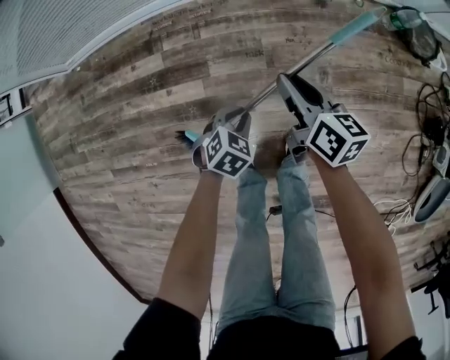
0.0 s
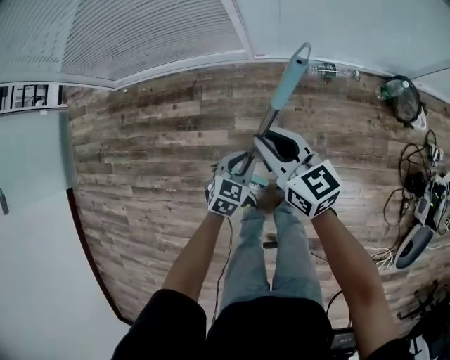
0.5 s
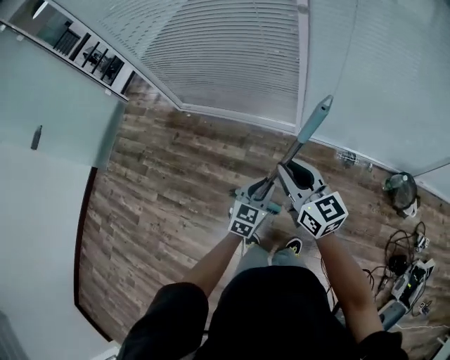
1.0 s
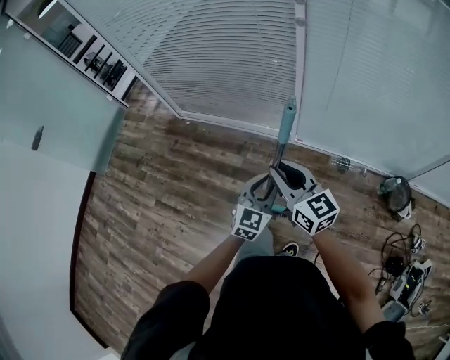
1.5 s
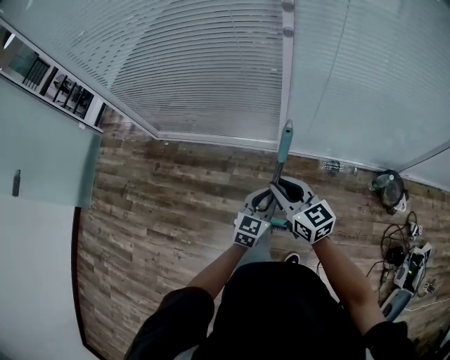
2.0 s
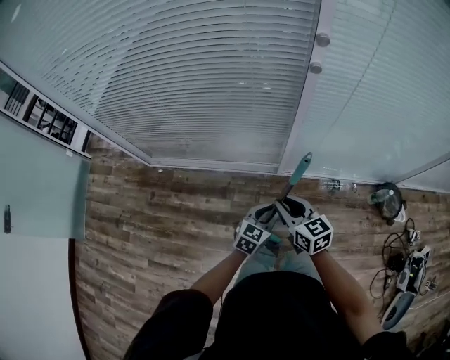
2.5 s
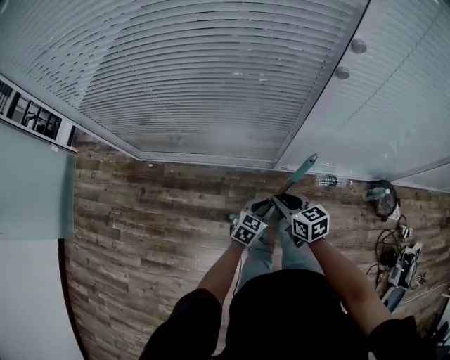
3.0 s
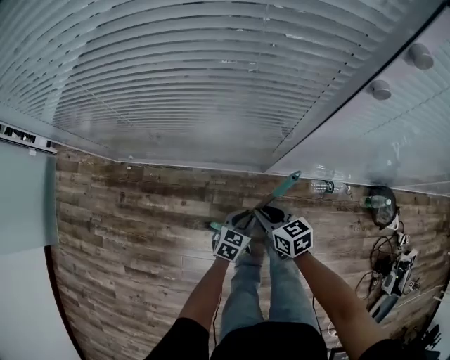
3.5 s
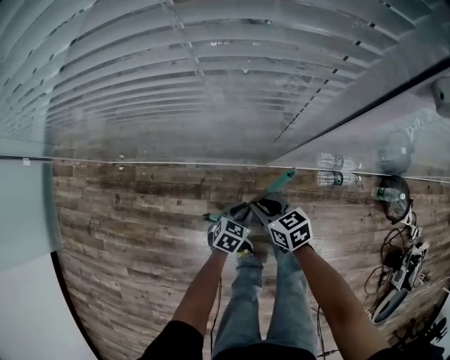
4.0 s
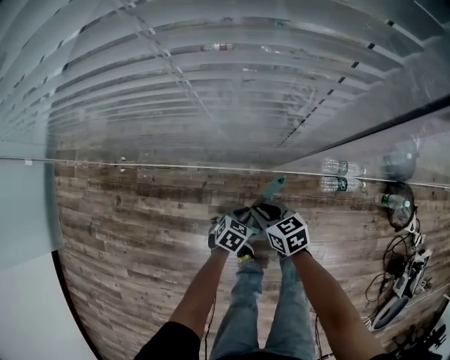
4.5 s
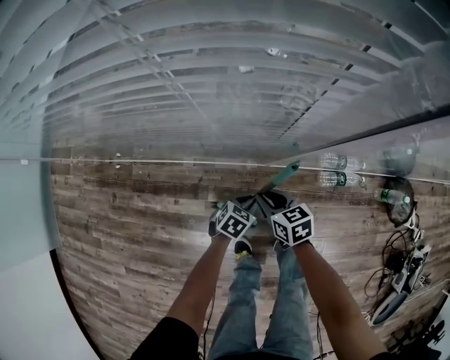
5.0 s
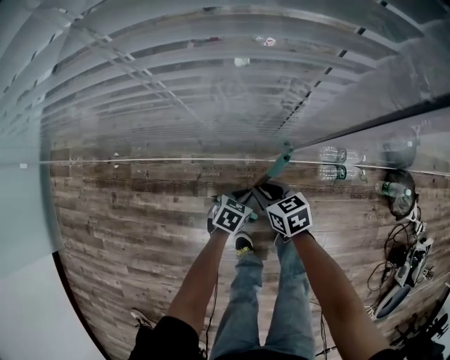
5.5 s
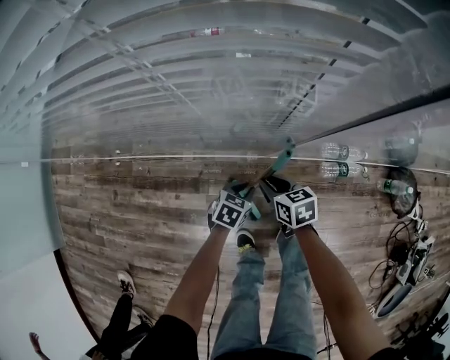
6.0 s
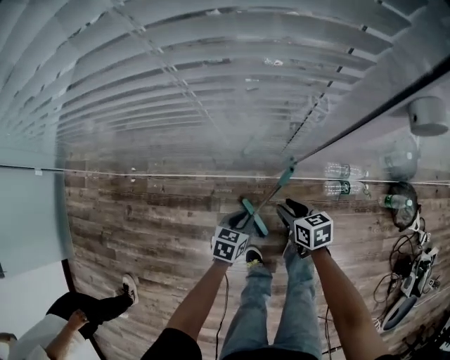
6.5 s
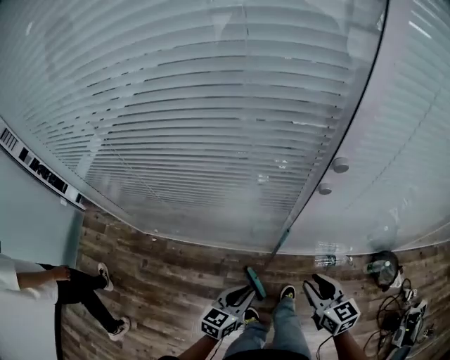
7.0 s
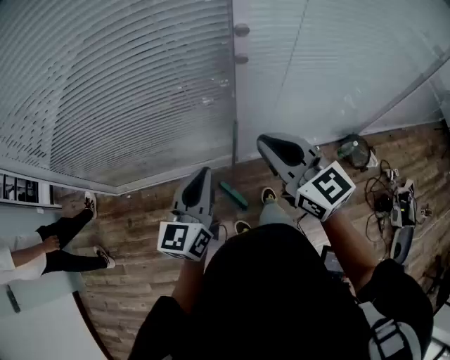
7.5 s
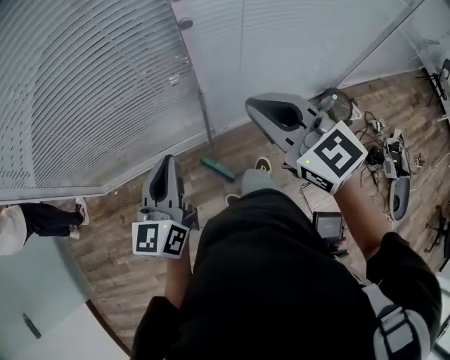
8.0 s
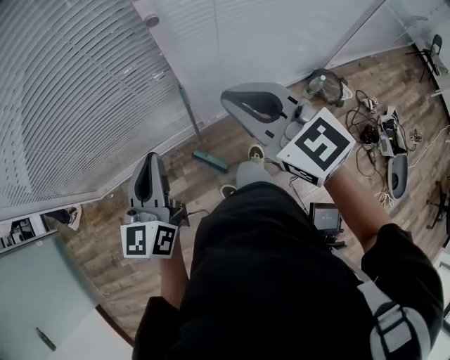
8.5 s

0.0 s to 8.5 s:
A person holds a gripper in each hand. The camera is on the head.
0.0 to 2.0 s: The two grippers go about 50 cm upward. The right gripper changes its angle by roughly 50 degrees. Meanwhile the left gripper tips its fingers upward by roughly 40 degrees.
2.0 to 4.0 s: The two grippers go some 50 cm downward and forward. The right gripper rotates roughly 30 degrees, while the left gripper swivels some 30 degrees.
4.0 to 6.5 s: The left gripper changes place by about 5 cm. The right gripper moves to the right, some 5 cm.
6.5 to 8.5 s: Both grippers travel together upward, about 50 cm. The left gripper angles its fingers upward, by approximately 50 degrees. The right gripper angles its fingers upward, by approximately 30 degrees, and closes its fingers.

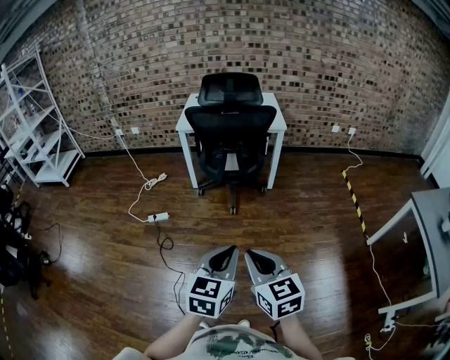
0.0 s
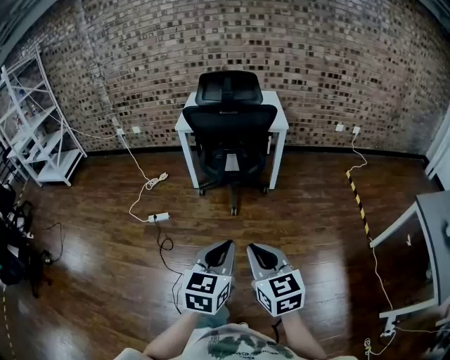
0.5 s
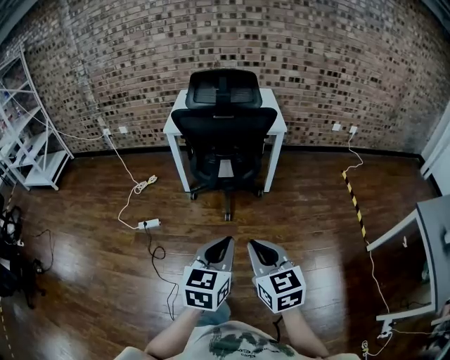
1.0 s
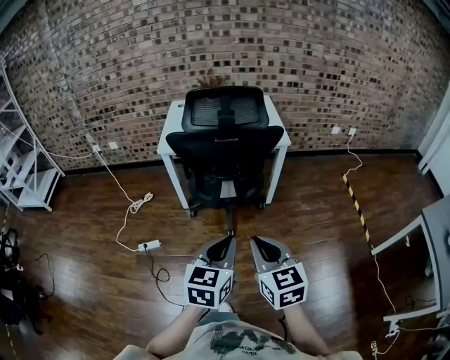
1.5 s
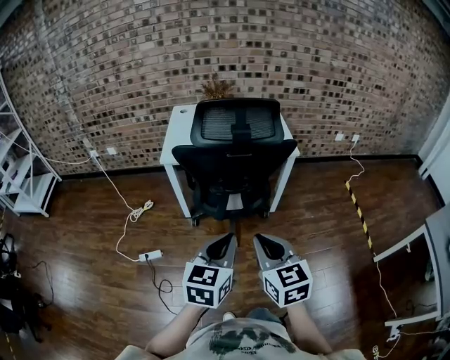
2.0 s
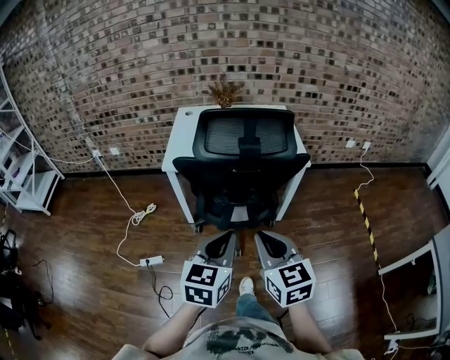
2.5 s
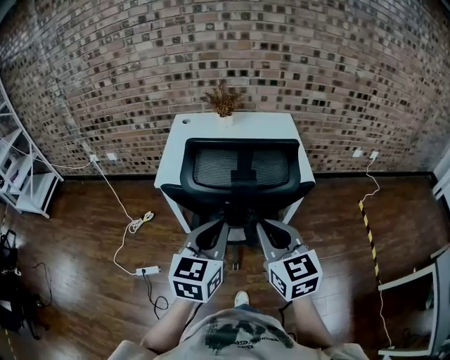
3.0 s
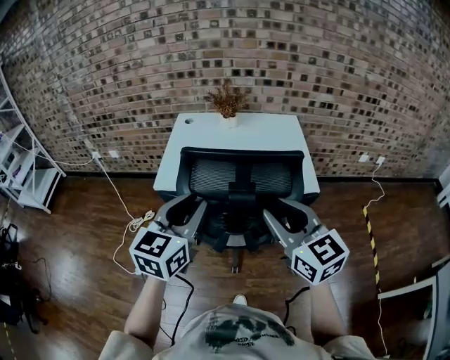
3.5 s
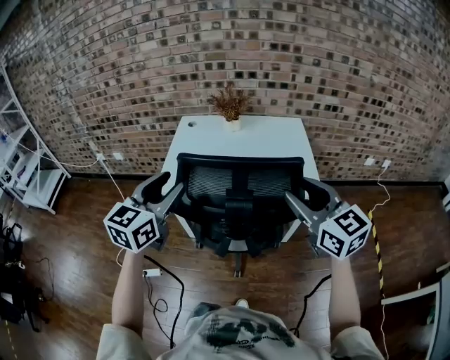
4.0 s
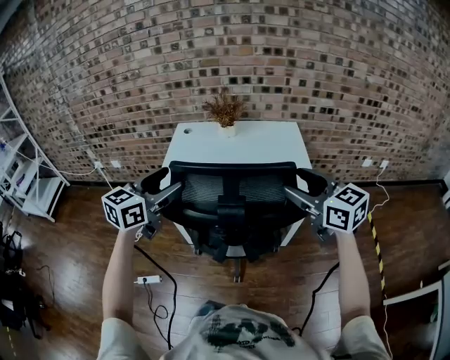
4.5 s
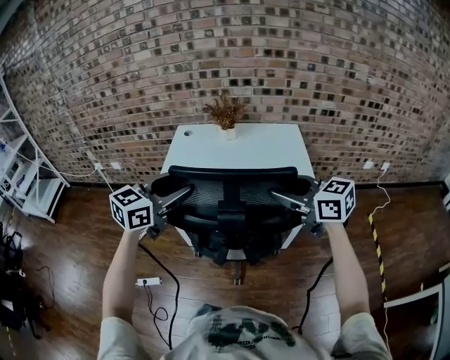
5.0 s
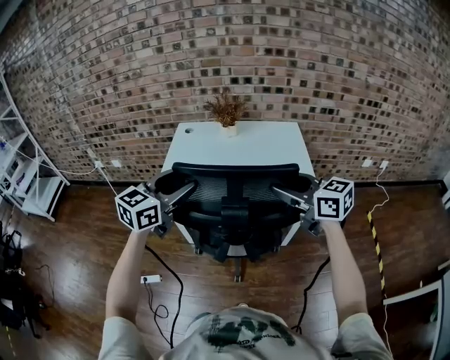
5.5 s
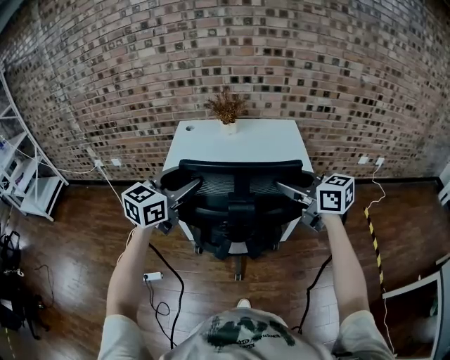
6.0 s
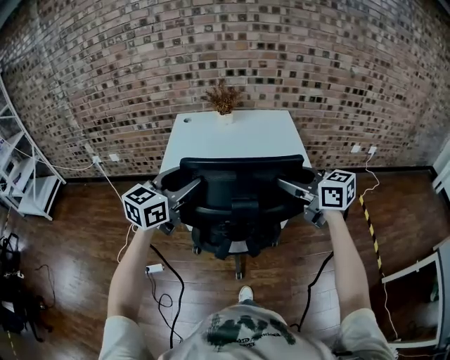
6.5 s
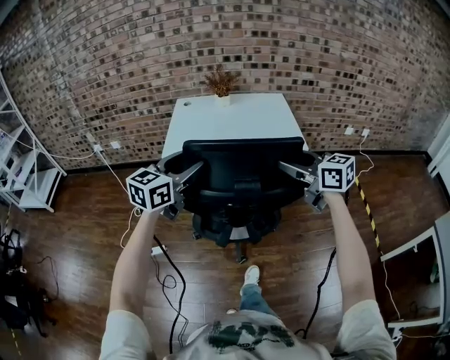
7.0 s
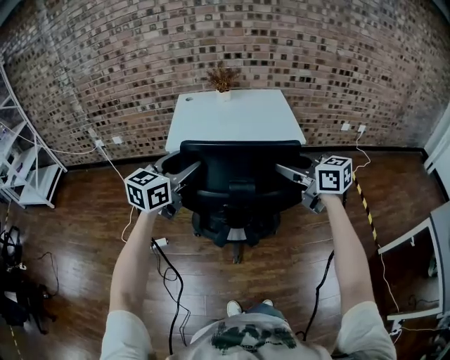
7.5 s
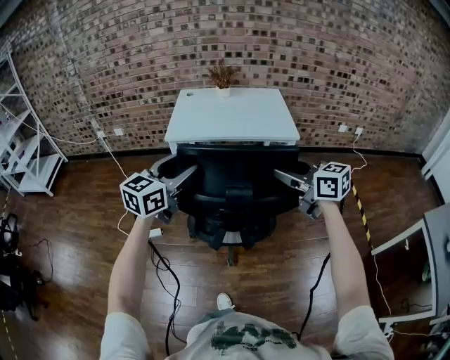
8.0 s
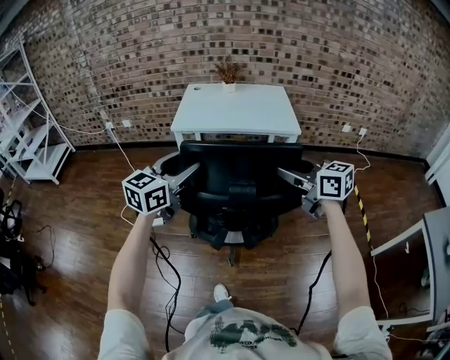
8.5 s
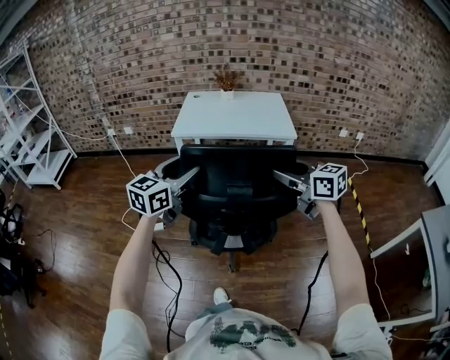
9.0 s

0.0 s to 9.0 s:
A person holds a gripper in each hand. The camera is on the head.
0.0 to 2.0 s: The grippers both shift forward by some 40 cm.
2.0 to 4.5 s: Both grippers are carried forward, some 40 cm. The right gripper rotates approximately 20 degrees, and opens. The left gripper opens its fingers.
4.5 to 7.0 s: The two grippers go some 15 cm backward.
7.0 to 9.0 s: The two grippers go about 20 cm backward.

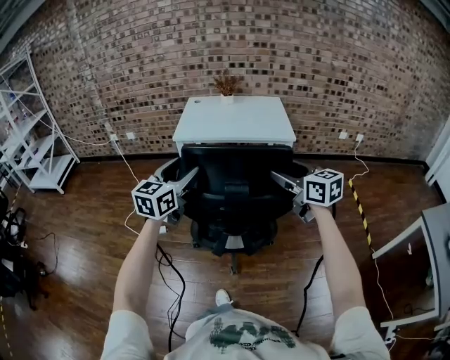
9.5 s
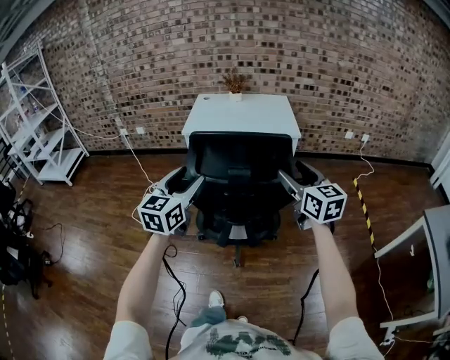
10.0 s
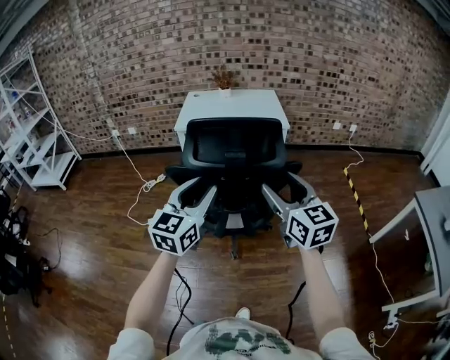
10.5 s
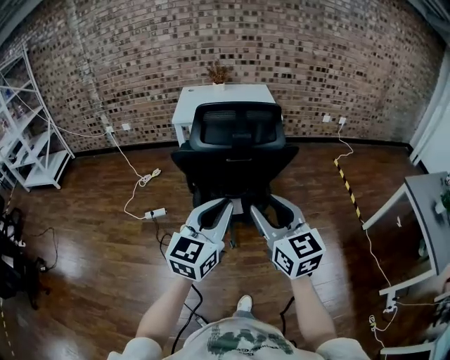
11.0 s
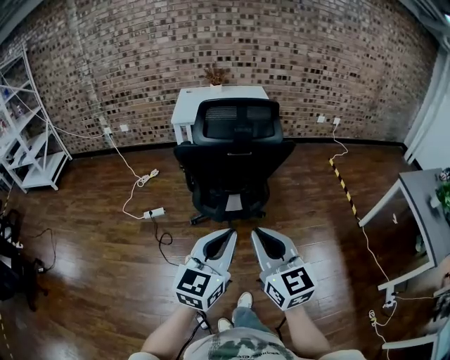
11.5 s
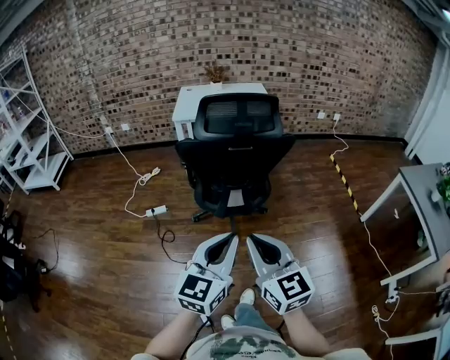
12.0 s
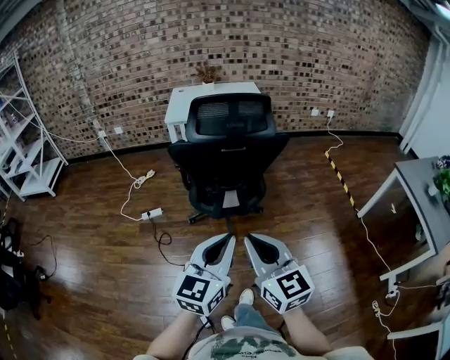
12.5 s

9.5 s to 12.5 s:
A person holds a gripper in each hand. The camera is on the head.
9.5 to 11.0 s: Both grippers travel together backward, approximately 35 cm. The left gripper closes up; the right gripper changes its angle by roughly 20 degrees.
11.0 to 12.5 s: The two grippers go about 10 cm backward. The right gripper closes.

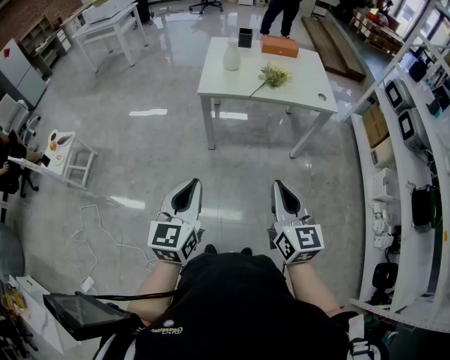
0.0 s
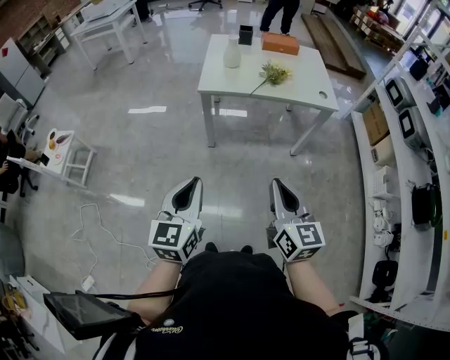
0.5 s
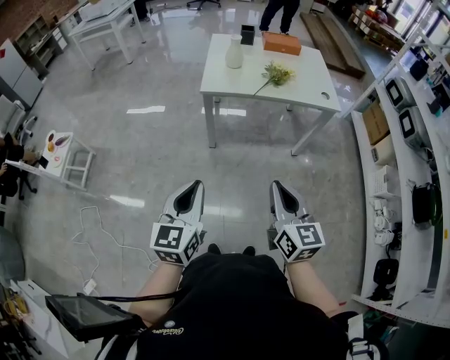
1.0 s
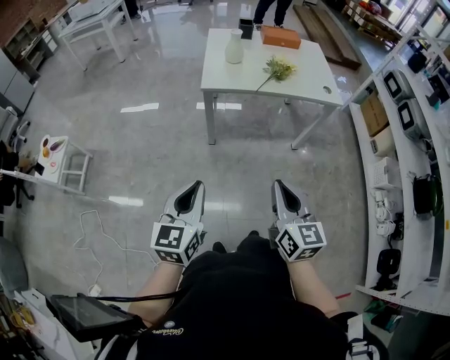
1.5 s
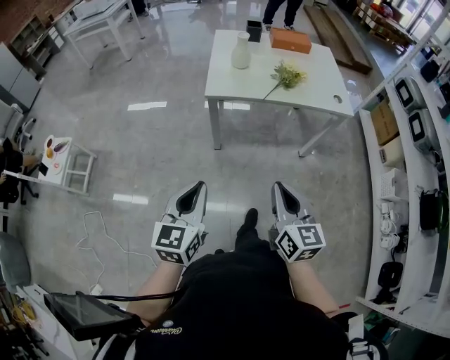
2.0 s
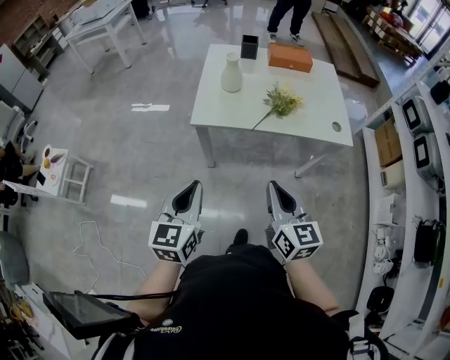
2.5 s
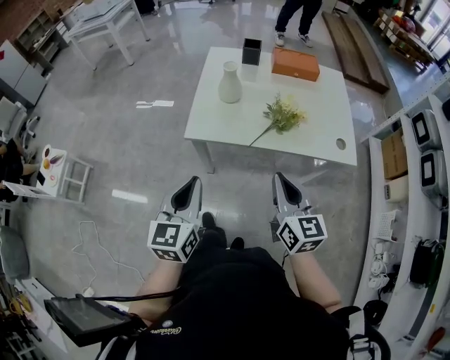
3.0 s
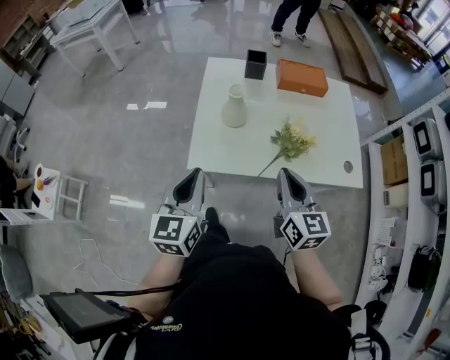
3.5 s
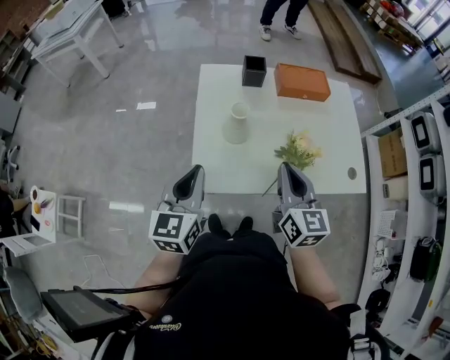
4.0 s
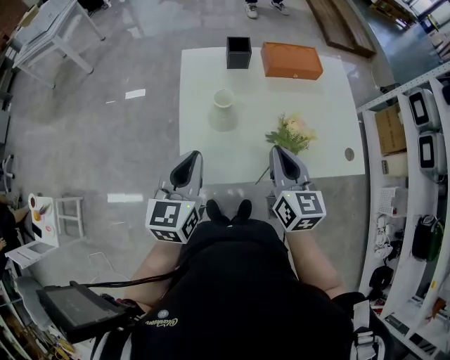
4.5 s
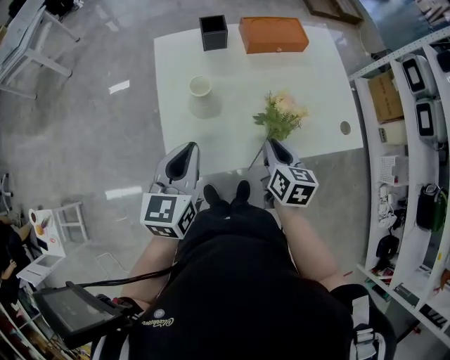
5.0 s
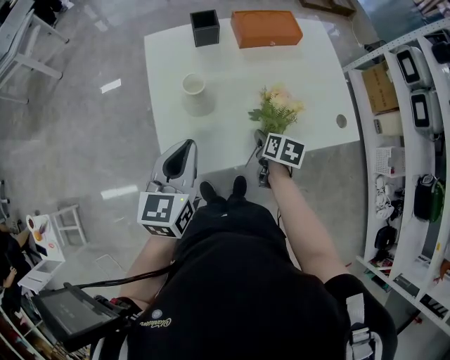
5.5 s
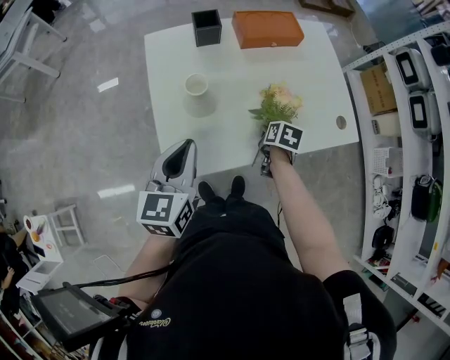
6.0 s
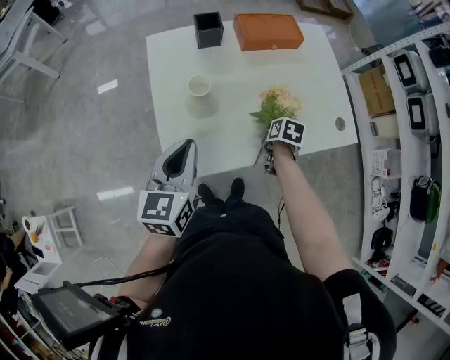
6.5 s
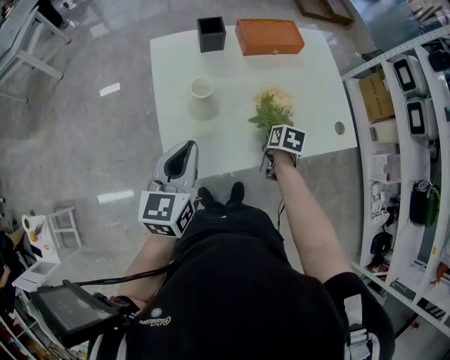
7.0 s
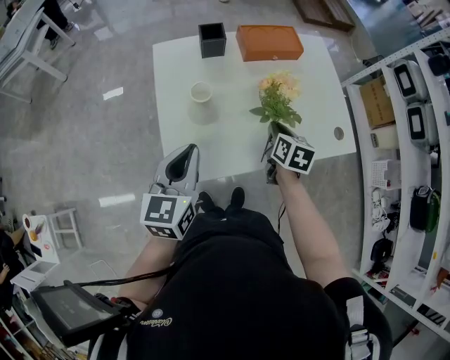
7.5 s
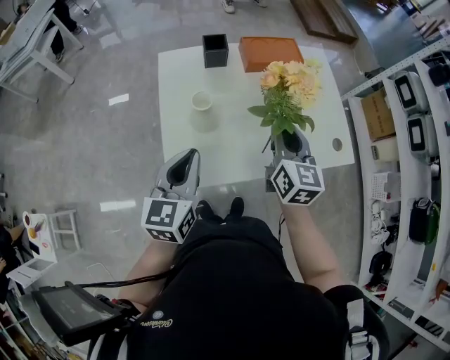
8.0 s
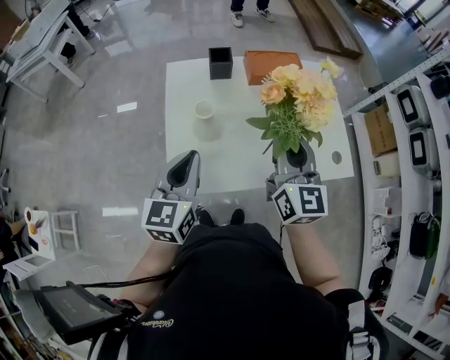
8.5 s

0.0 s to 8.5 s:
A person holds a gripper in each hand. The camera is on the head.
0.0 to 2.0 s: The right gripper shifts roughly 10 cm forward, to the left and downward. Meanwhile the left gripper shifts approximately 10 cm forward.
2.0 to 4.0 s: Both grippers are carried forward, about 50 cm.
4.0 to 6.5 s: The left gripper is displaced forward and to the right by some 10 cm; the right gripper shifts about 30 cm downward, points its fingers some 60 degrees further downward, and opens, then closes again.
6.5 to 8.5 s: The left gripper goes approximately 5 cm upward; the right gripper travels upward by approximately 35 cm, and points its fingers some 70 degrees further upward.
